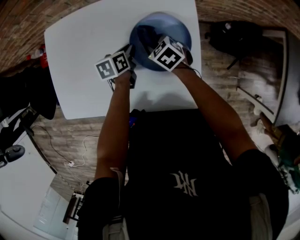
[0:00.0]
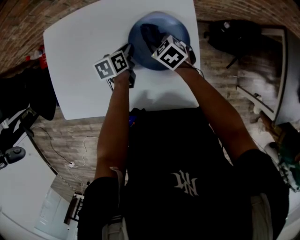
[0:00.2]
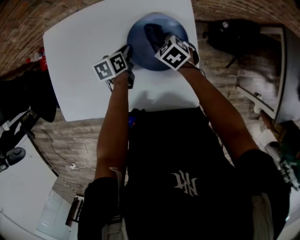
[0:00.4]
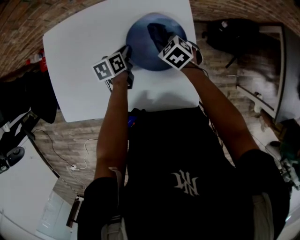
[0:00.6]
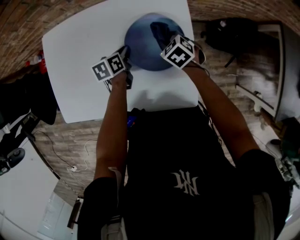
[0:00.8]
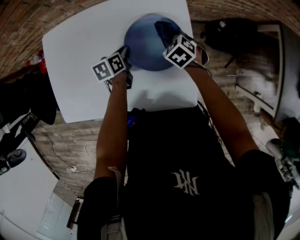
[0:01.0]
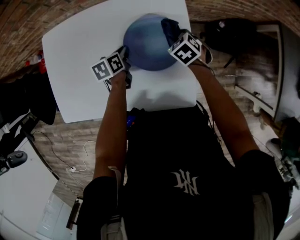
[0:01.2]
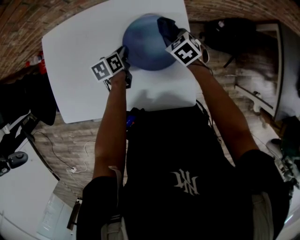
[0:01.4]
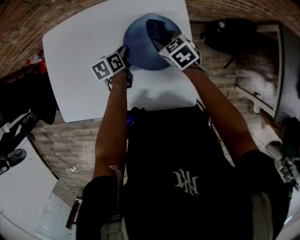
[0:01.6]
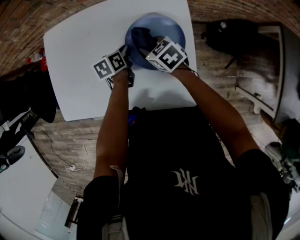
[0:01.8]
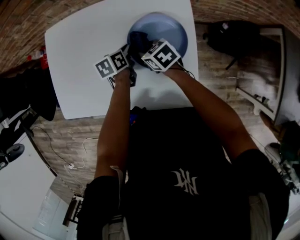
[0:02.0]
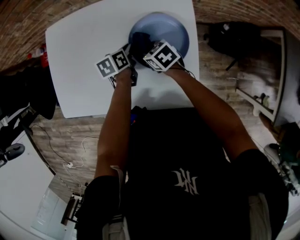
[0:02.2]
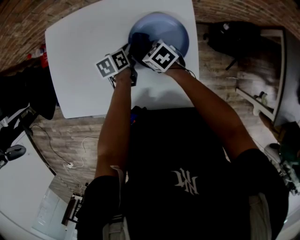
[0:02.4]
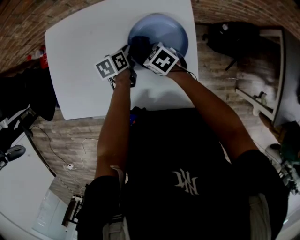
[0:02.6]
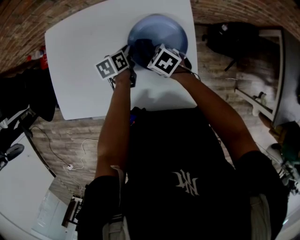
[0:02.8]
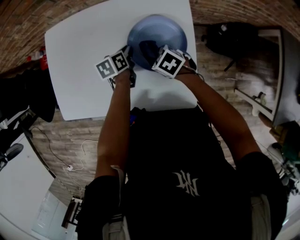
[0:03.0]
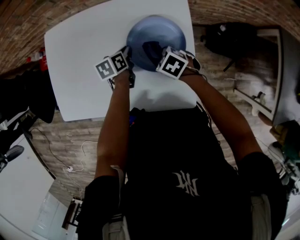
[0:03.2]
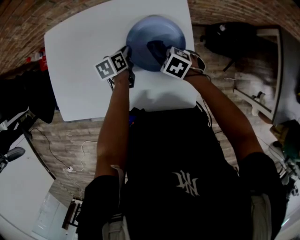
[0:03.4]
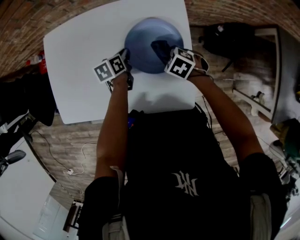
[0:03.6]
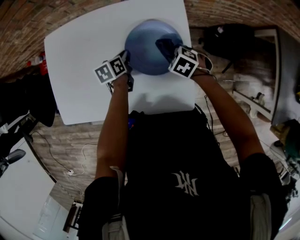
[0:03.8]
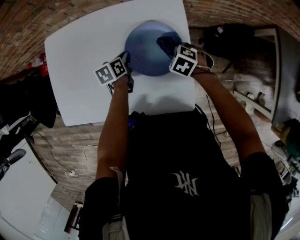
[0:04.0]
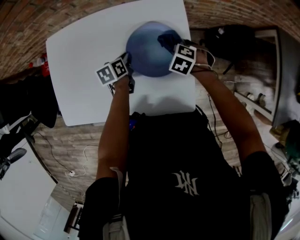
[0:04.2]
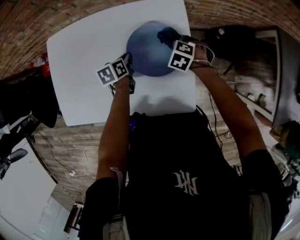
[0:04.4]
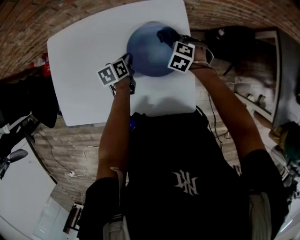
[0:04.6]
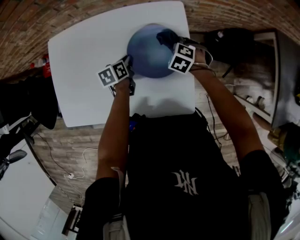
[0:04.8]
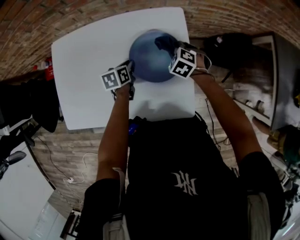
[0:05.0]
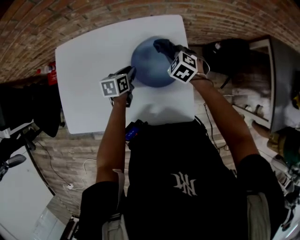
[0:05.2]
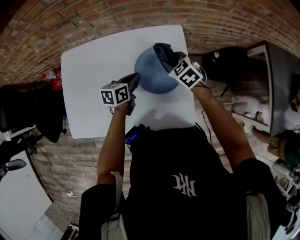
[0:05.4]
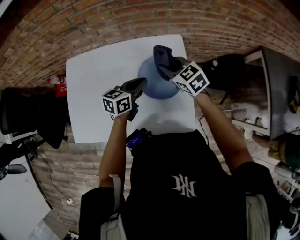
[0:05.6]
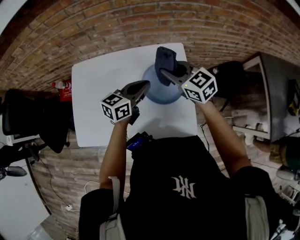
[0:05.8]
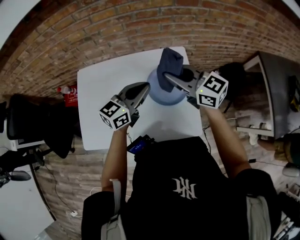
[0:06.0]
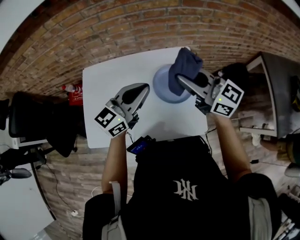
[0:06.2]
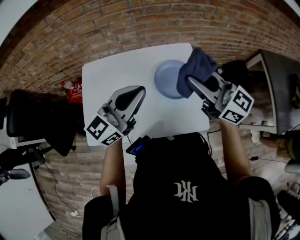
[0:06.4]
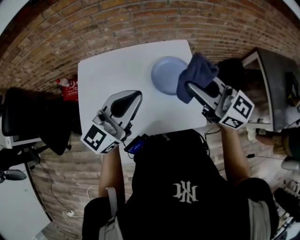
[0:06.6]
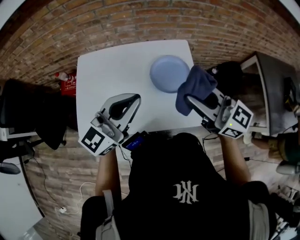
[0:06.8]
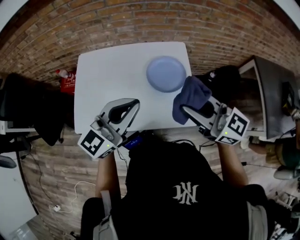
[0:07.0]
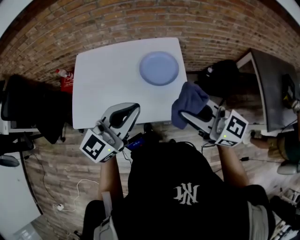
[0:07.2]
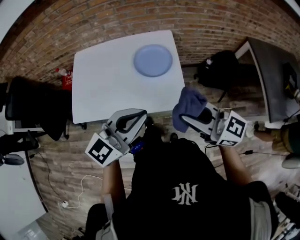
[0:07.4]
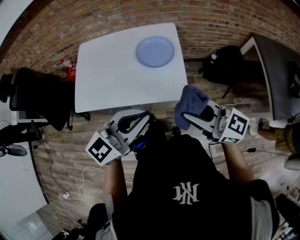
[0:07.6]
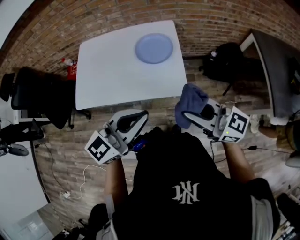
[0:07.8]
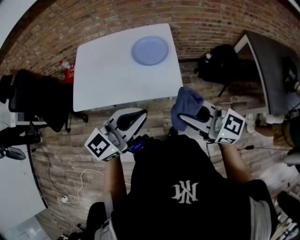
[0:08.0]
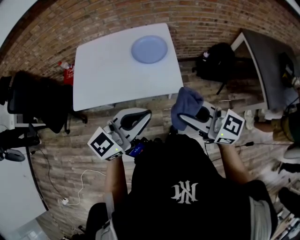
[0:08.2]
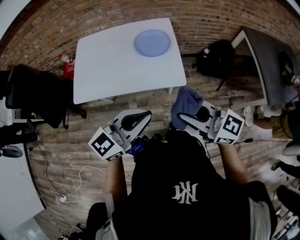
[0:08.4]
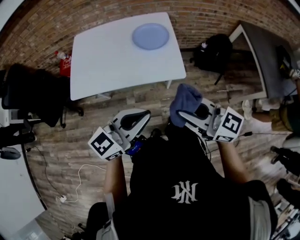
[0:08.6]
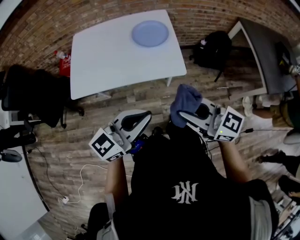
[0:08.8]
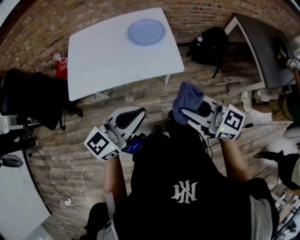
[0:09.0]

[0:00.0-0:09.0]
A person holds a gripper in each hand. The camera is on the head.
0:00.0 to 0:01.6: The right gripper goes some 5 cm to the right.
0:01.6 to 0:03.0: The right gripper heads backward, to the left and downward, covering about 10 cm, and rotates some 20 degrees.
0:03.0 to 0:04.4: The right gripper shifts by some 15 cm, and rotates roughly 30 degrees.
0:04.4 to 0:06.0: The grippers both shift upward by roughly 30 cm. The left gripper angles its fingers upward, by some 40 degrees, while the right gripper tilts its fingers roughly 70 degrees upward.
0:06.0 to 0:07.6: Both grippers move backward, roughly 35 cm.
0:07.6 to 0:09.0: The two grippers go roughly 15 cm backward and to the left.

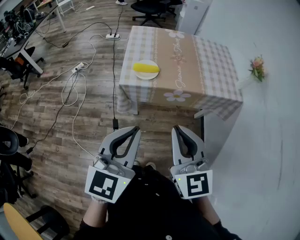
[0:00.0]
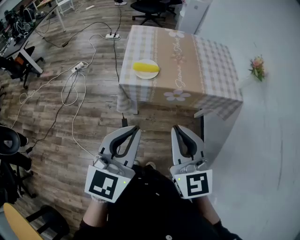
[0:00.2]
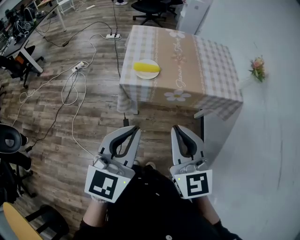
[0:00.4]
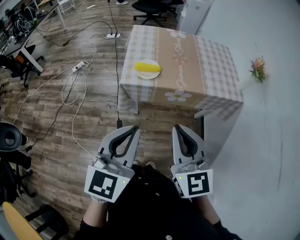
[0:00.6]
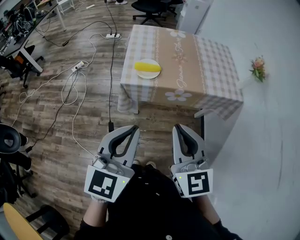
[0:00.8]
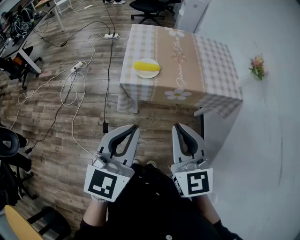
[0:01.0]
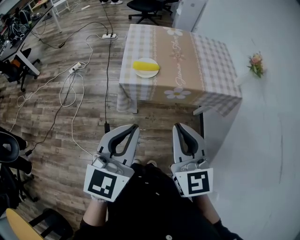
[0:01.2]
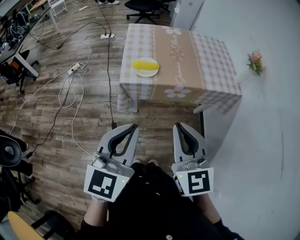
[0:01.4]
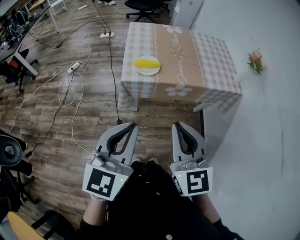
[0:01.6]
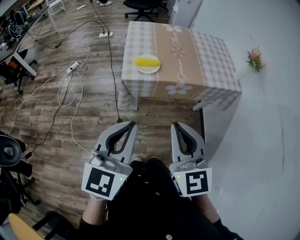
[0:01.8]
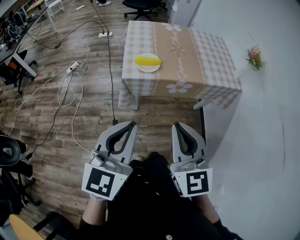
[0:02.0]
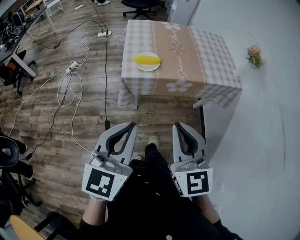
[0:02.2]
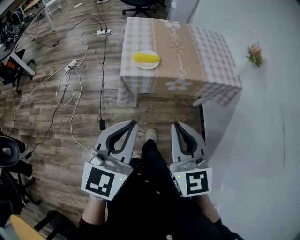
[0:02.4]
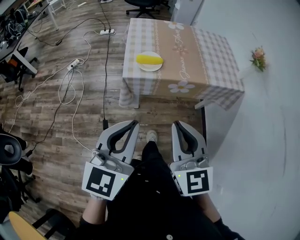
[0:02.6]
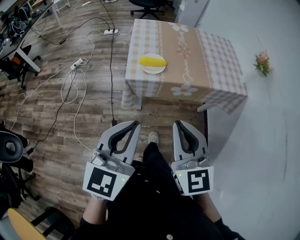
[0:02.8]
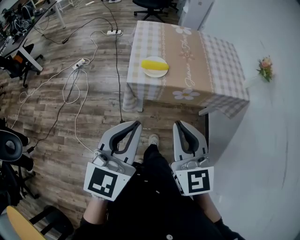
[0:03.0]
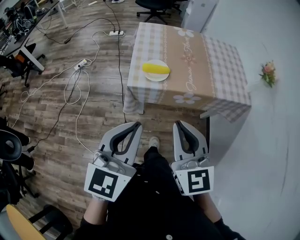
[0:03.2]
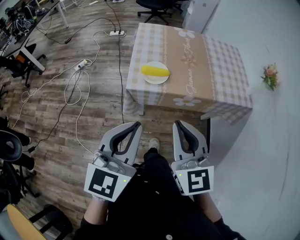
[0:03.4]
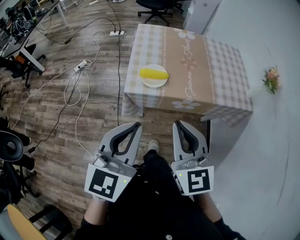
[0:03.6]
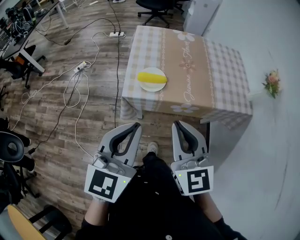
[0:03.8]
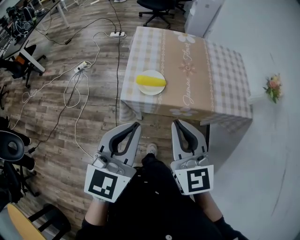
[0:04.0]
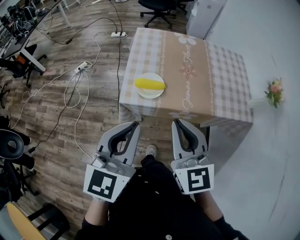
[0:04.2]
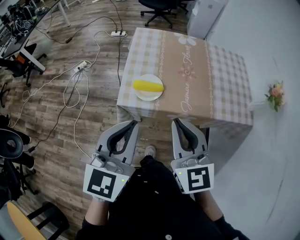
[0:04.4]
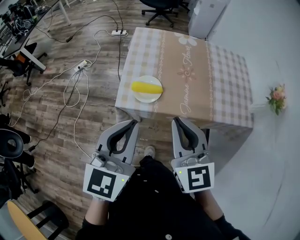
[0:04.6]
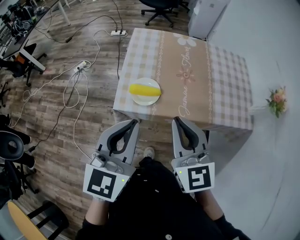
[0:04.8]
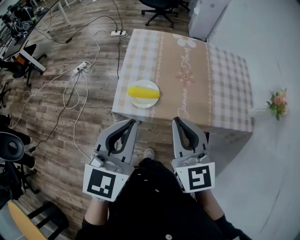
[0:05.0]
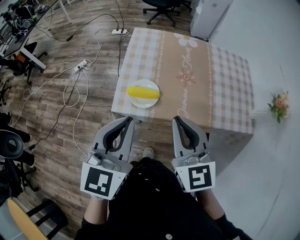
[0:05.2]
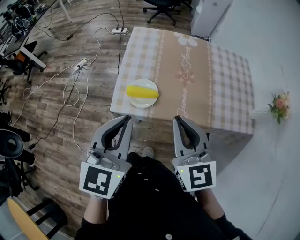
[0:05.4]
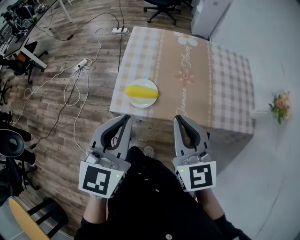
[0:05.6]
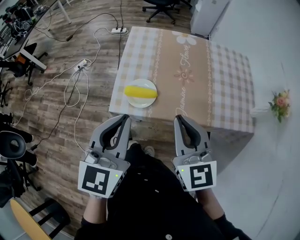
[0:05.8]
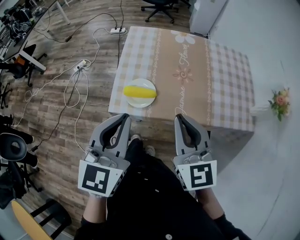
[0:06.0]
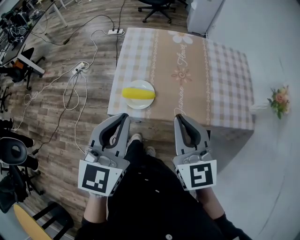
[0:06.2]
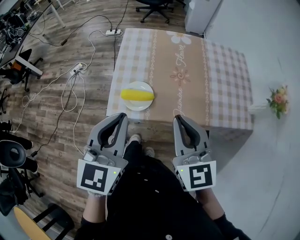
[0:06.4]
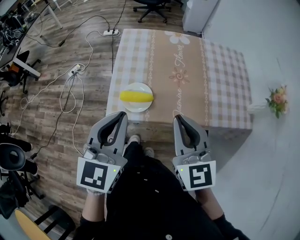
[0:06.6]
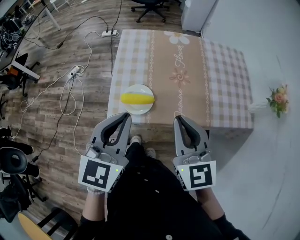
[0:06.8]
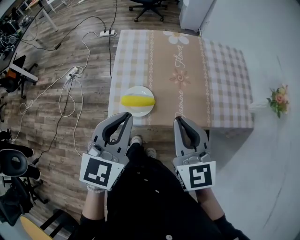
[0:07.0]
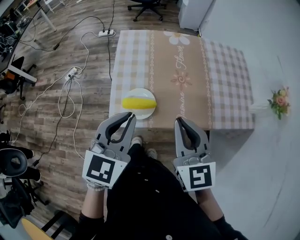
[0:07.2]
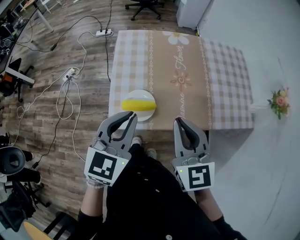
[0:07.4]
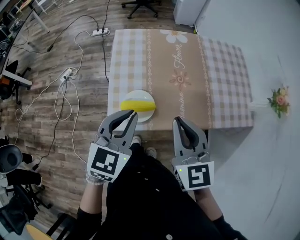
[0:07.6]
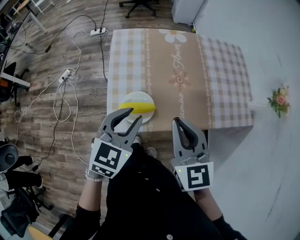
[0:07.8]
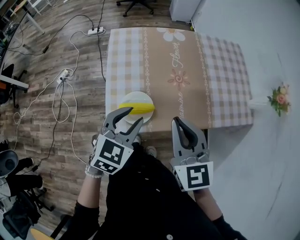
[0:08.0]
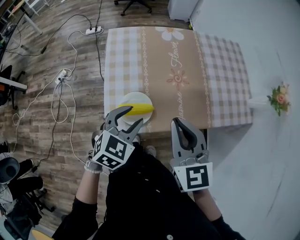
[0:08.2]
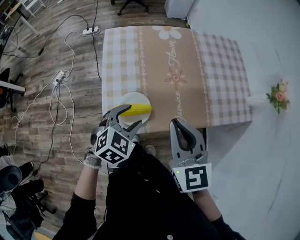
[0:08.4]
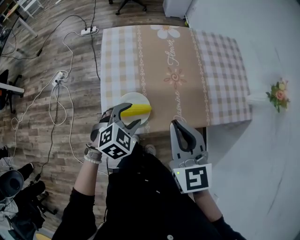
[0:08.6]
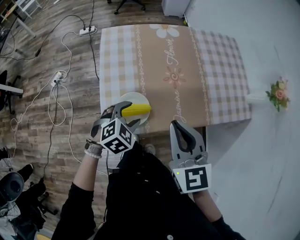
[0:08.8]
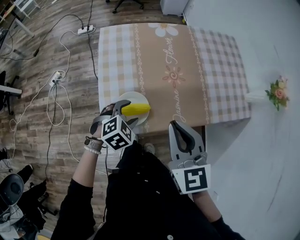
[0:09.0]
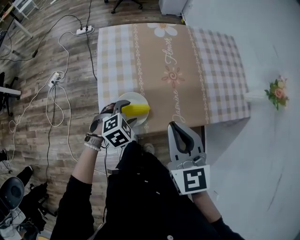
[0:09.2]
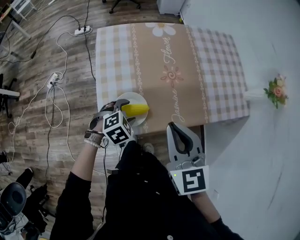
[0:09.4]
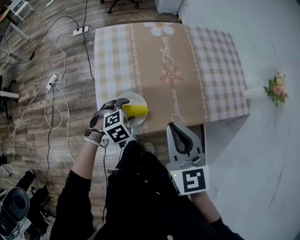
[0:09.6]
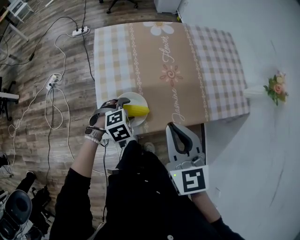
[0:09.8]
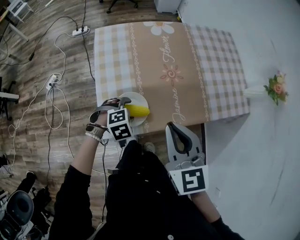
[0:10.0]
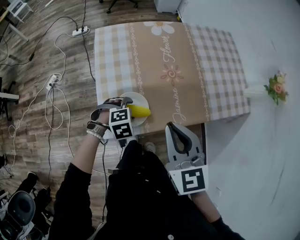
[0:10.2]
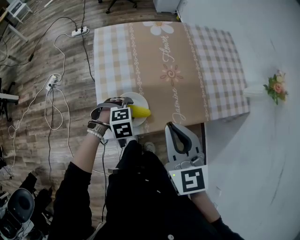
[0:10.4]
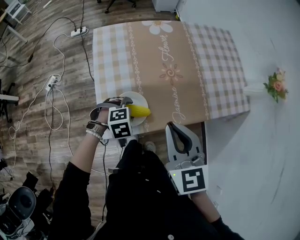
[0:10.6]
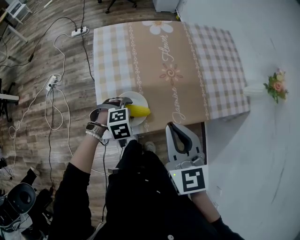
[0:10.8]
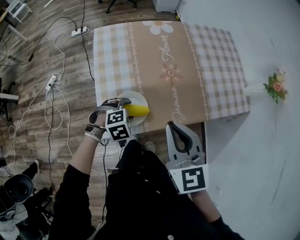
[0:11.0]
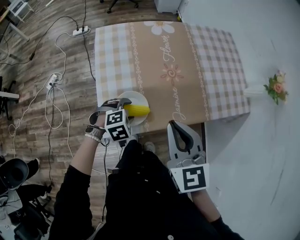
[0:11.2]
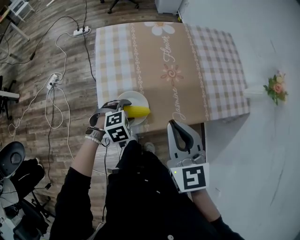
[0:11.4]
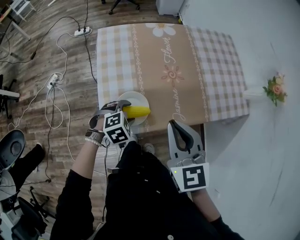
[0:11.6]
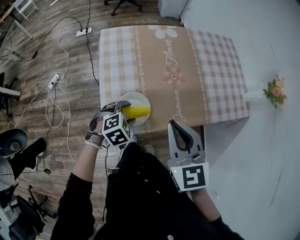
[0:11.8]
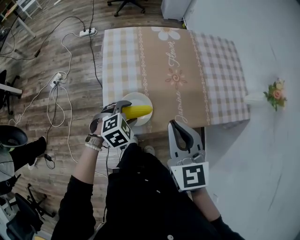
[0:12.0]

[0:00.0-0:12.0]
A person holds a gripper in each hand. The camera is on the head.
0:00.0 to 0:01.6: There are only small adjustments of the grippers.
0:01.6 to 0:03.0: The grippers stay close to where they were, moving slightly.
0:03.0 to 0:04.4: The two grippers go approximately 15 cm forward.
0:04.4 to 0:06.0: The right gripper is displaced forward and to the right by roughly 10 cm, while the left gripper travels forward by roughly 10 cm.
0:06.0 to 0:07.6: The right gripper heads forward, covering approximately 5 cm; the left gripper moves forward and downward, about 15 cm, and swivels approximately 20 degrees.
0:07.6 to 0:09.0: The left gripper moves downward, roughly 20 cm, tilts its fingers about 30 degrees downward, and opens its fingers.
0:09.0 to 0:10.4: The left gripper goes about 5 cm downward, and rotates roughly 30 degrees.
0:10.4 to 0:12.0: The left gripper moves upward, approximately 5 cm, and rotates roughly 20 degrees.

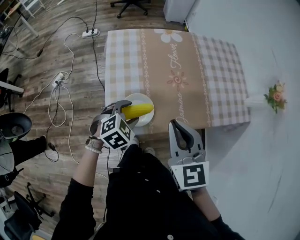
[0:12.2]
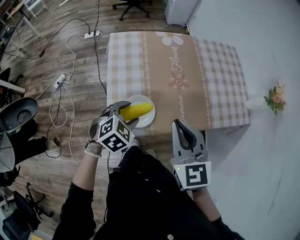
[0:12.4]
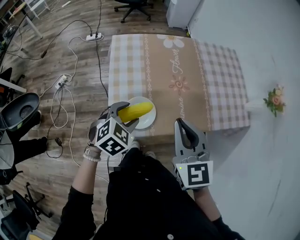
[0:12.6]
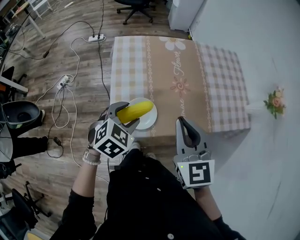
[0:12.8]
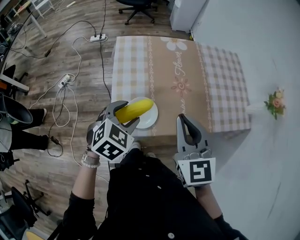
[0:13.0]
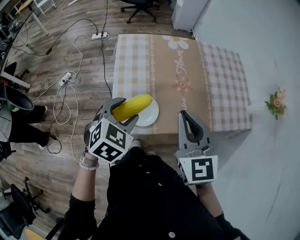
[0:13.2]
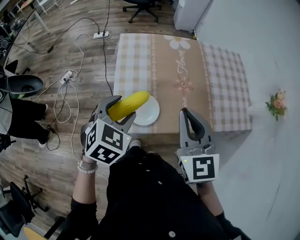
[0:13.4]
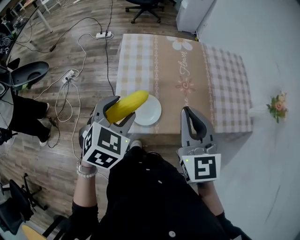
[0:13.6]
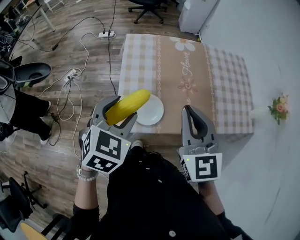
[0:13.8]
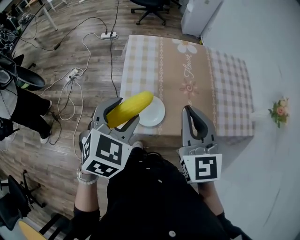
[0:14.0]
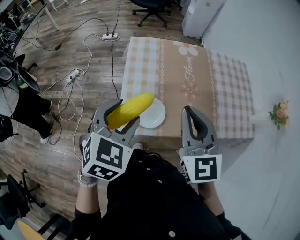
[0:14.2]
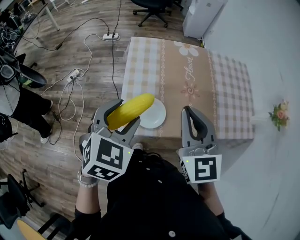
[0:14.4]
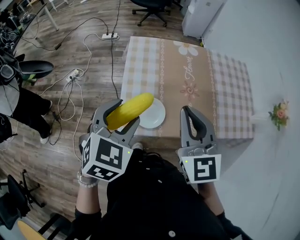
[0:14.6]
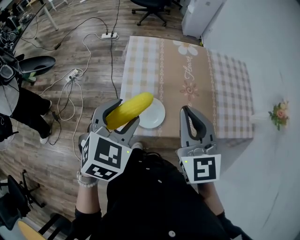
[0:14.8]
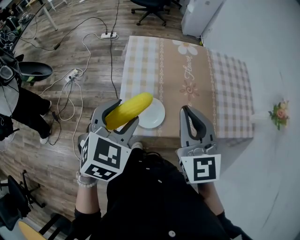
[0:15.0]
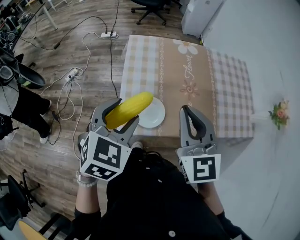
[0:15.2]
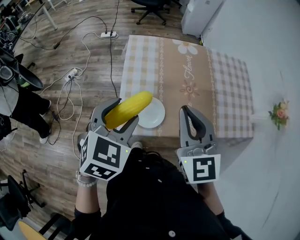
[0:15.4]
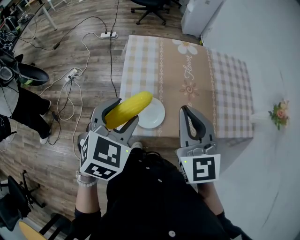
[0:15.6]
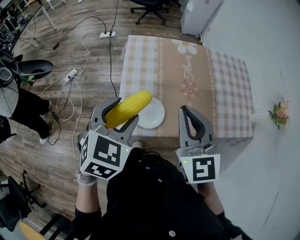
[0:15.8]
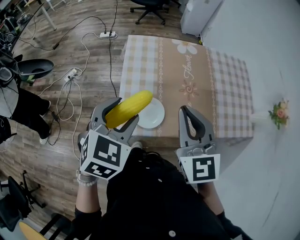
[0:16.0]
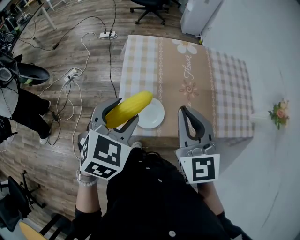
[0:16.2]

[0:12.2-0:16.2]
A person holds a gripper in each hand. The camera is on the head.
0:12.2 to 0:13.6: The right gripper is displaced upward by about 5 cm, while the left gripper heads upward, covering about 15 cm, and changes its angle by some 30 degrees.
0:13.6 to 0:14.8: The grippers make only small movements.
0:14.8 to 0:16.2: Neither gripper changes place.
